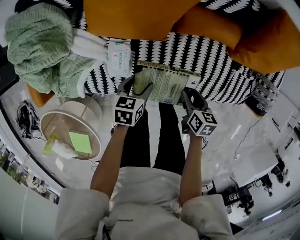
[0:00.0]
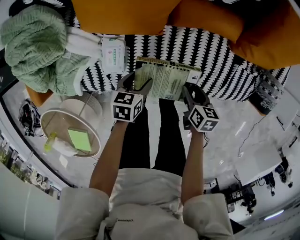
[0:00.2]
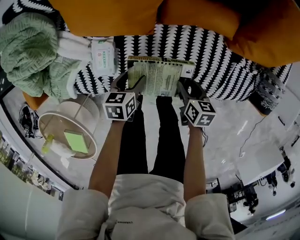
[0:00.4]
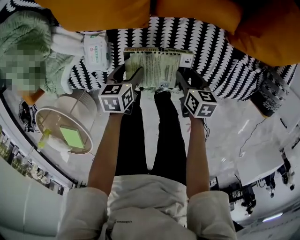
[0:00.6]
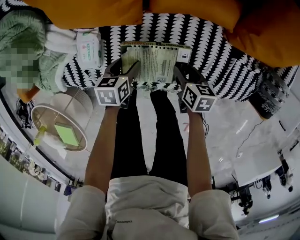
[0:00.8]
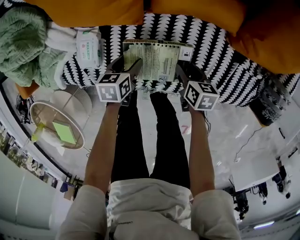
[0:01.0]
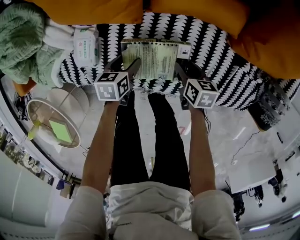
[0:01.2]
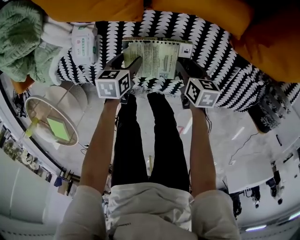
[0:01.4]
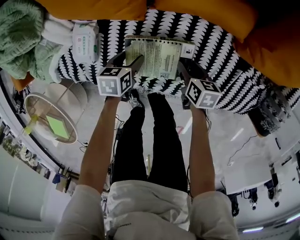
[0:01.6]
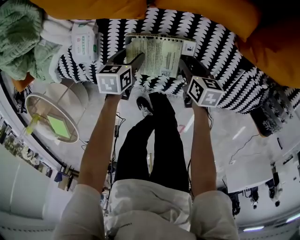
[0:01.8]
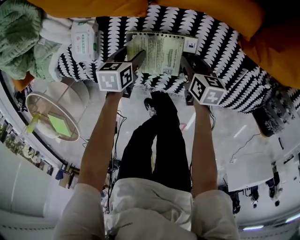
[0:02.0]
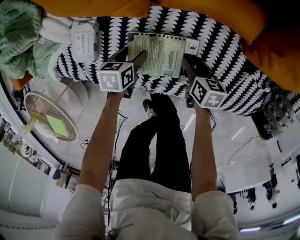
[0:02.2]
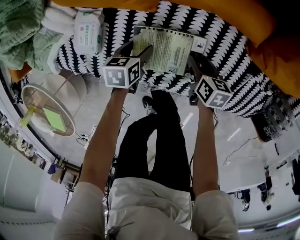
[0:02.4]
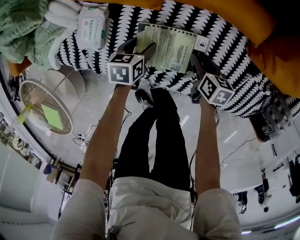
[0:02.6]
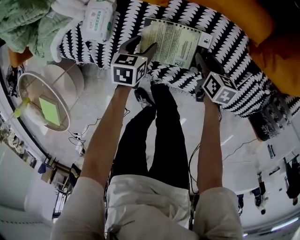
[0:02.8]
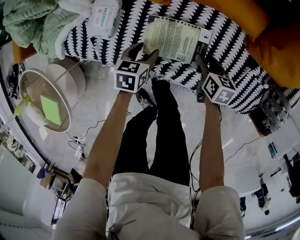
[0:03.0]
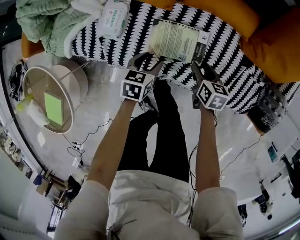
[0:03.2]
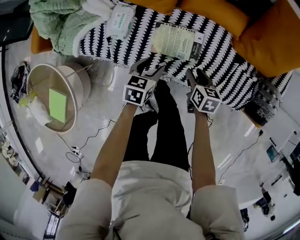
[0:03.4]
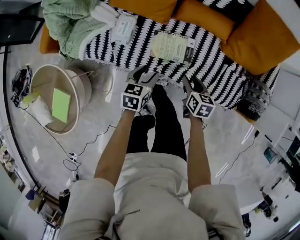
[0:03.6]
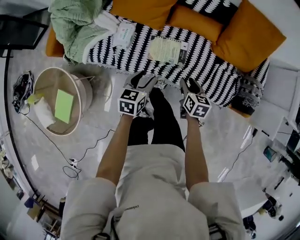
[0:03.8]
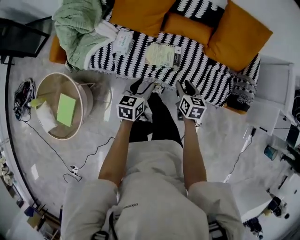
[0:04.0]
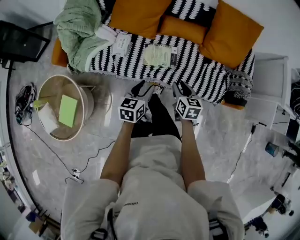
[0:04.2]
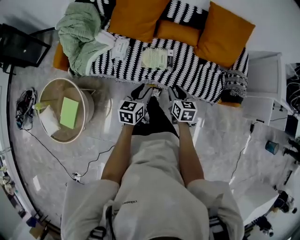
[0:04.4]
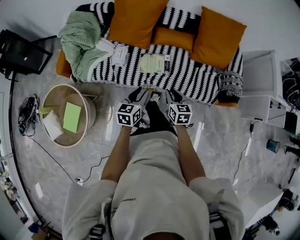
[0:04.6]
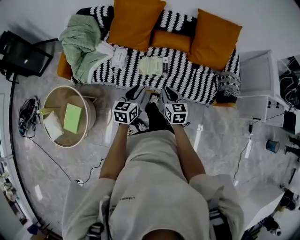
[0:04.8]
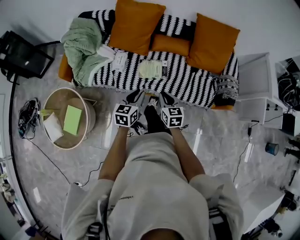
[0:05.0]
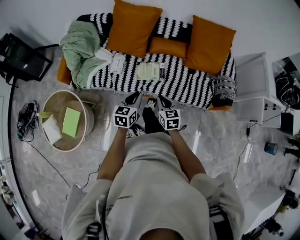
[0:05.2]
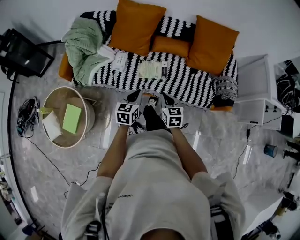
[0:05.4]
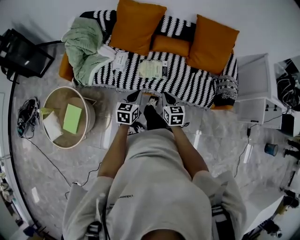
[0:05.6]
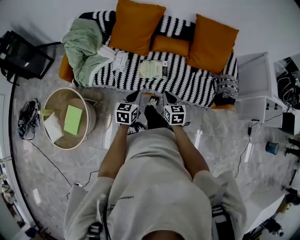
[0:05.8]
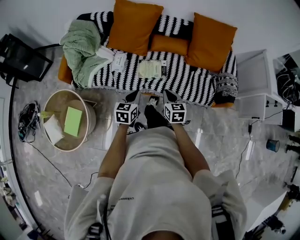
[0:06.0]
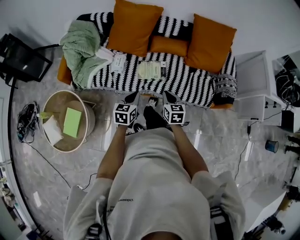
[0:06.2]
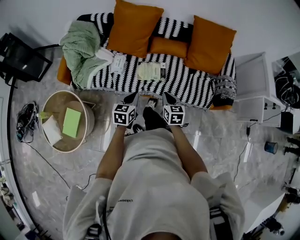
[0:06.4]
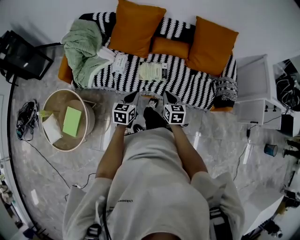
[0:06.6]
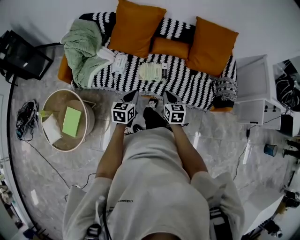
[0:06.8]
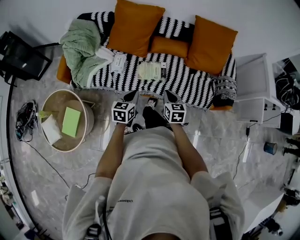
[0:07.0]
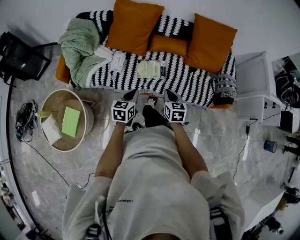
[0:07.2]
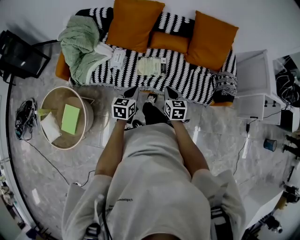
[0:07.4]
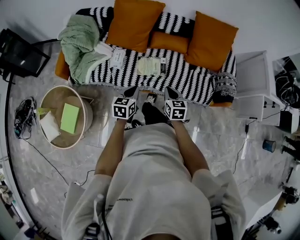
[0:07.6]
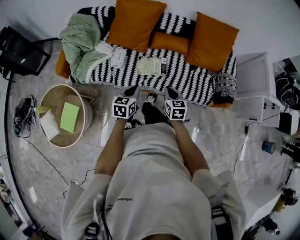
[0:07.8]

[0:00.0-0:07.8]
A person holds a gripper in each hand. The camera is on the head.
0:00.0 to 0:01.6: Both grippers travel together downward and to the right, roughly 20 cm.
0:01.6 to 0:03.2: The left gripper is displaced backward and upward by some 10 cm; the right gripper heads upward and backward, covering roughly 10 cm.
0:03.2 to 0:04.6: Both grippers travel together upward and backward, some 40 cm. The right gripper turns by about 20 degrees, and closes its fingers; the left gripper rotates some 20 degrees.
0:04.6 to 0:06.2: The left gripper closes its fingers.
0:06.2 to 0:07.8: The grippers move only a little.

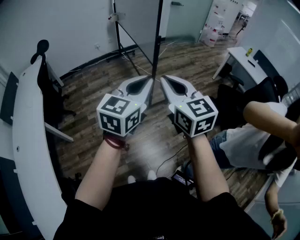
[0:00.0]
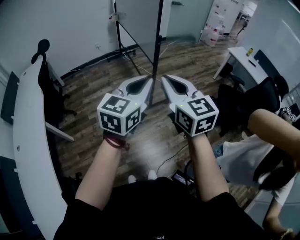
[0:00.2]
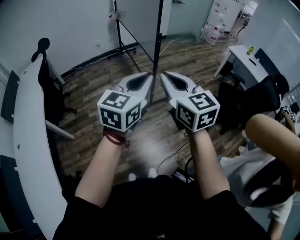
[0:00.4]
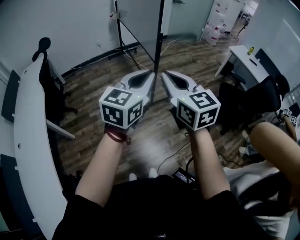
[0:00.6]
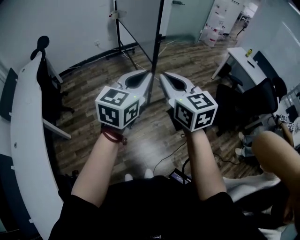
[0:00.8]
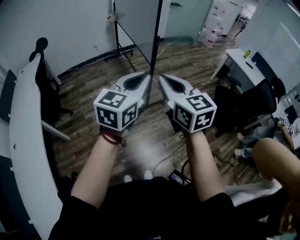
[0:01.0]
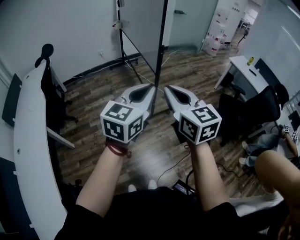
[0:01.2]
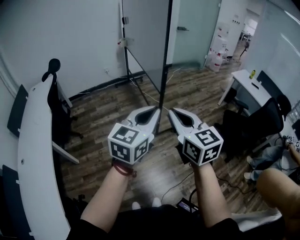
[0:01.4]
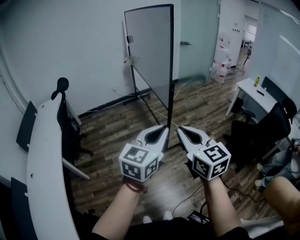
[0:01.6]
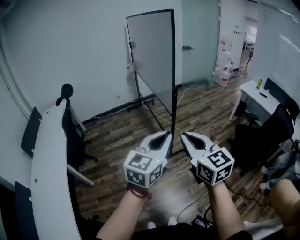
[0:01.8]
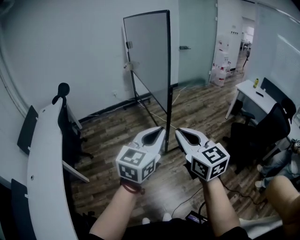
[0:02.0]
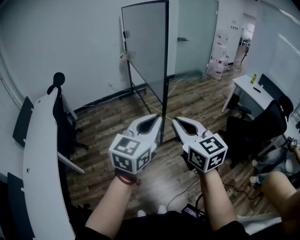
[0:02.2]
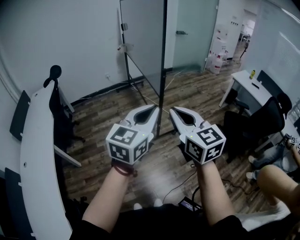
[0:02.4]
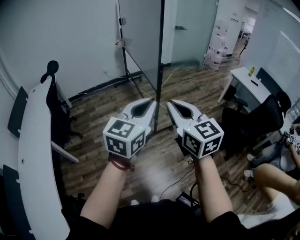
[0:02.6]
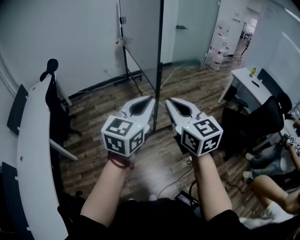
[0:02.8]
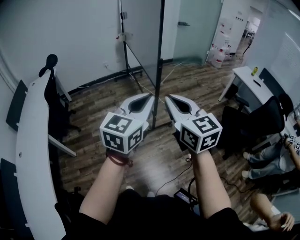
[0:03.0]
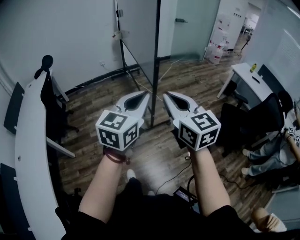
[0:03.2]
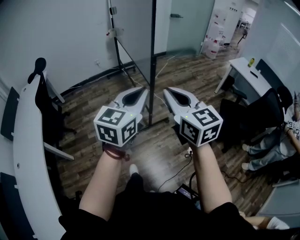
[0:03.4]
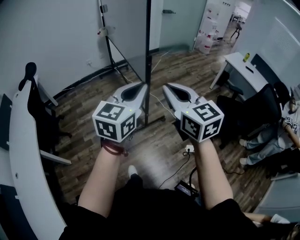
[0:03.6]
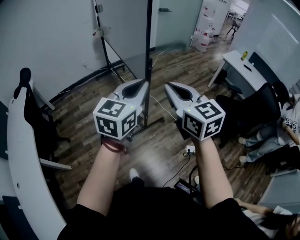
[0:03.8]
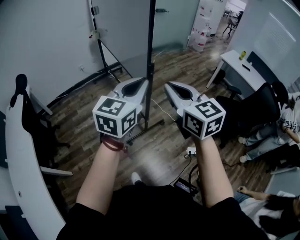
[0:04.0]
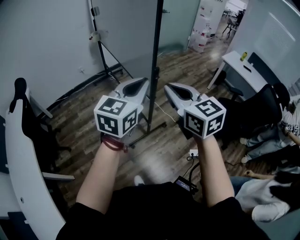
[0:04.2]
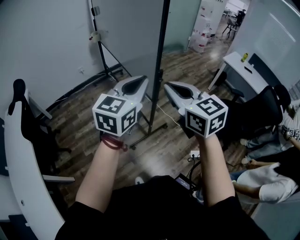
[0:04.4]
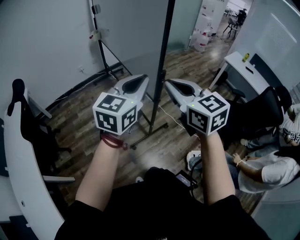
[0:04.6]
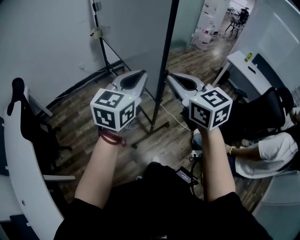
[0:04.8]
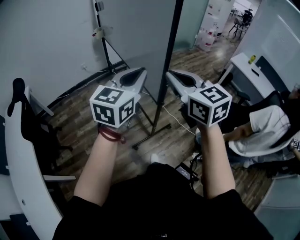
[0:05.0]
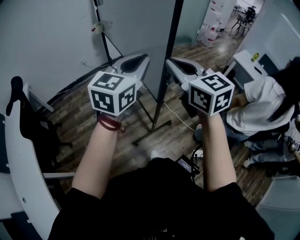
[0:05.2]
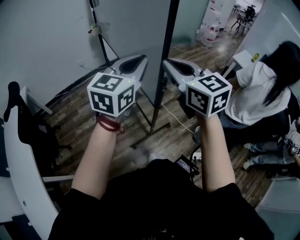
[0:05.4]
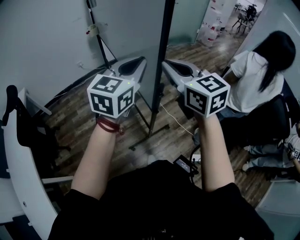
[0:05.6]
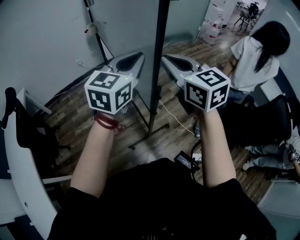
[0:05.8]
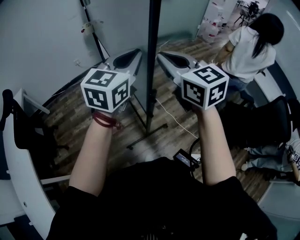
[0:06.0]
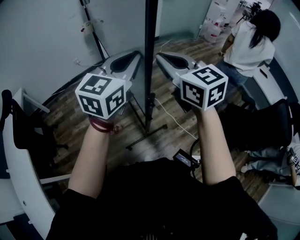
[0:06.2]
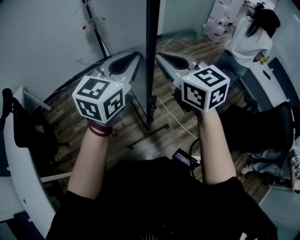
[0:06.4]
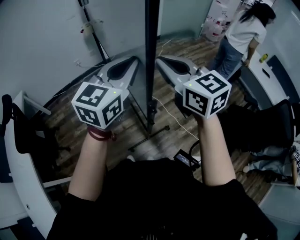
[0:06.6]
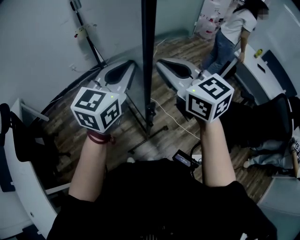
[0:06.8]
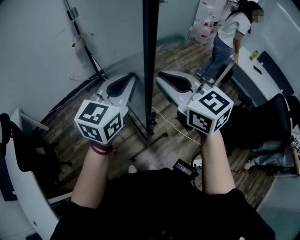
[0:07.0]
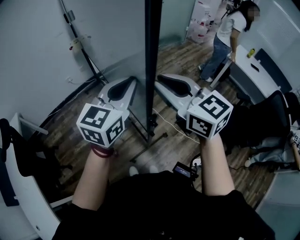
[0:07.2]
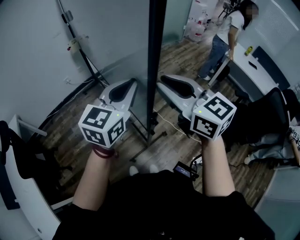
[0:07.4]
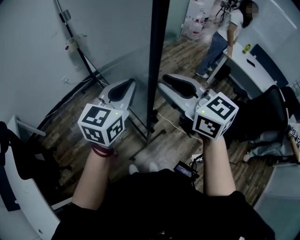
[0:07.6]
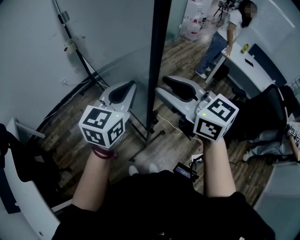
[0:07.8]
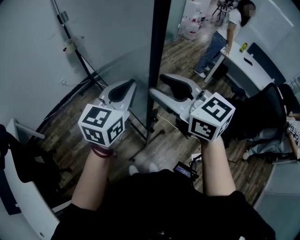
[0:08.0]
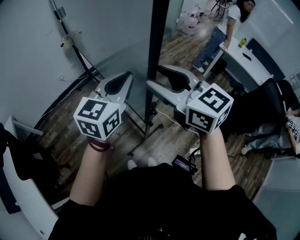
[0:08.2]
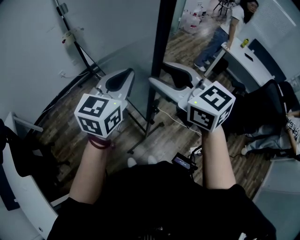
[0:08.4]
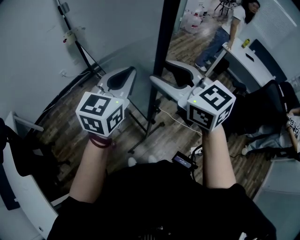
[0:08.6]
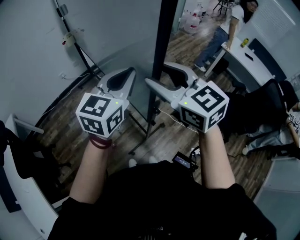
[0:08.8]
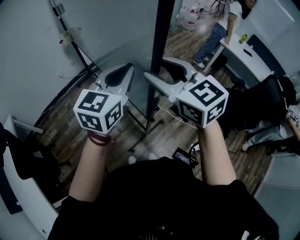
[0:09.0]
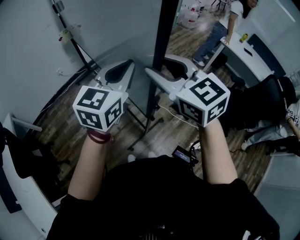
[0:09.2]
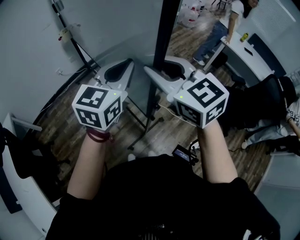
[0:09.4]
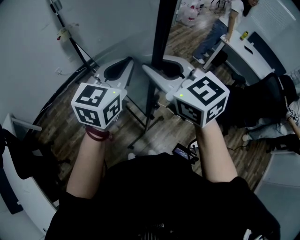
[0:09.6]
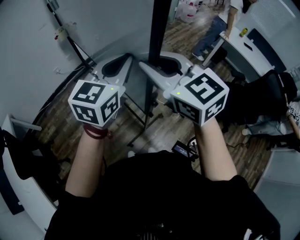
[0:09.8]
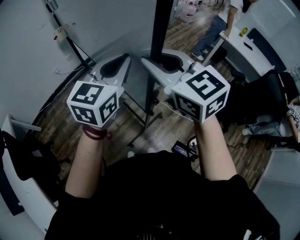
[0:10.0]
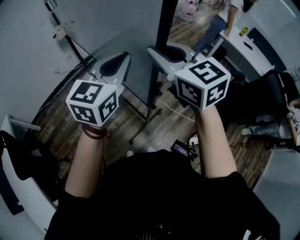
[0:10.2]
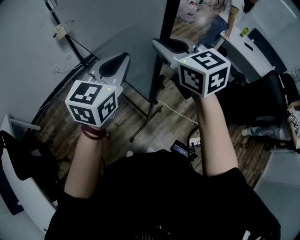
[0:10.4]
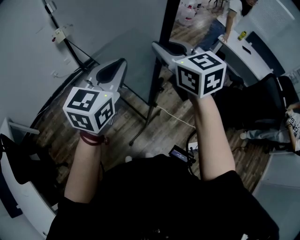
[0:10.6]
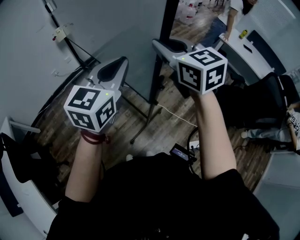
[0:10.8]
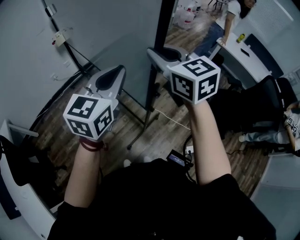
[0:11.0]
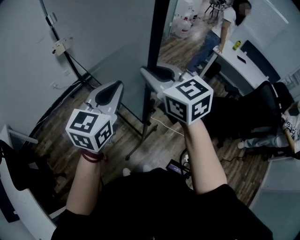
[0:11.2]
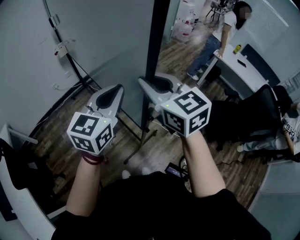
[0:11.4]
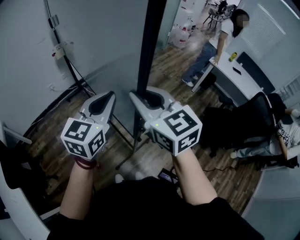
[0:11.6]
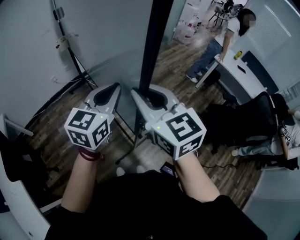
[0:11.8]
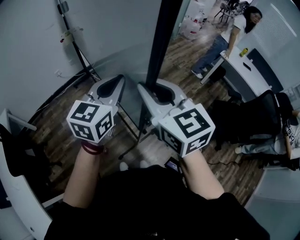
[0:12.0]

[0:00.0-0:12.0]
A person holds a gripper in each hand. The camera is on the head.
0:00.0 to 0:01.6: The grippers make only small movements.
0:01.6 to 0:03.0: The right gripper changes place by some 5 cm.
0:03.0 to 0:04.4: The grippers both shift forward by about 30 cm.
0:04.4 to 0:06.0: The grippers both shift forward by approximately 25 cm.
0:06.0 to 0:07.6: The right gripper opens.
0:07.6 to 0:09.0: The right gripper opens.
0:09.0 to 0:10.4: The right gripper is displaced forward by approximately 10 cm, and closes.
0:10.4 to 0:12.0: The right gripper heads backward, covering approximately 10 cm.

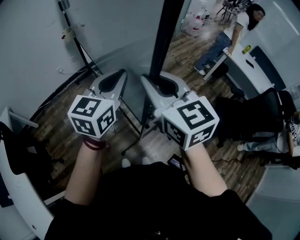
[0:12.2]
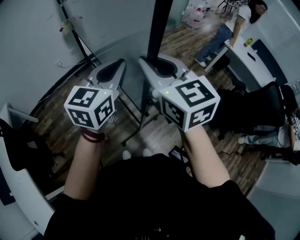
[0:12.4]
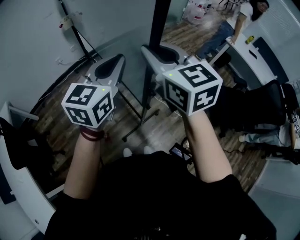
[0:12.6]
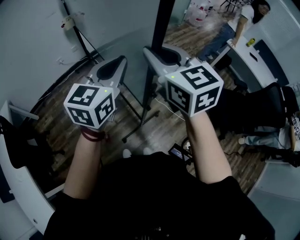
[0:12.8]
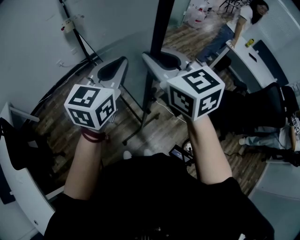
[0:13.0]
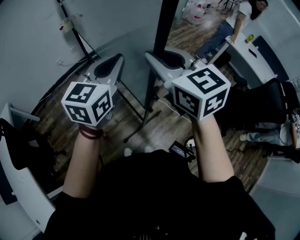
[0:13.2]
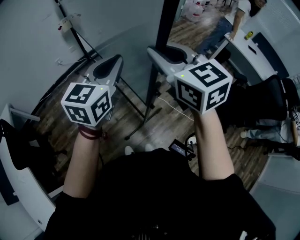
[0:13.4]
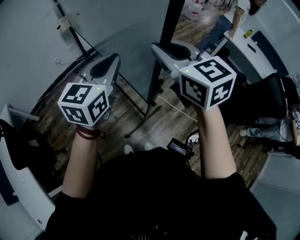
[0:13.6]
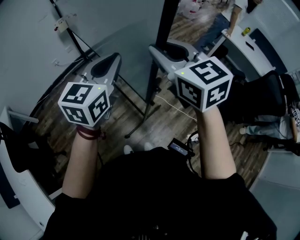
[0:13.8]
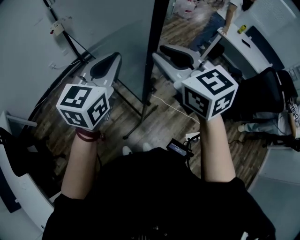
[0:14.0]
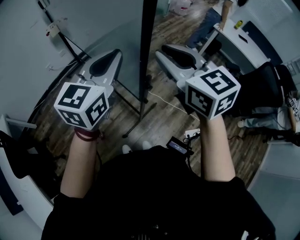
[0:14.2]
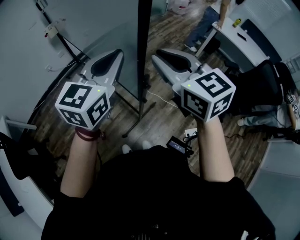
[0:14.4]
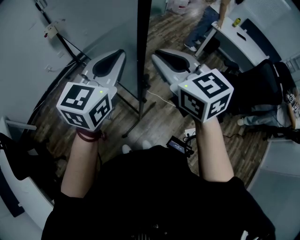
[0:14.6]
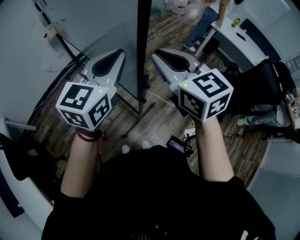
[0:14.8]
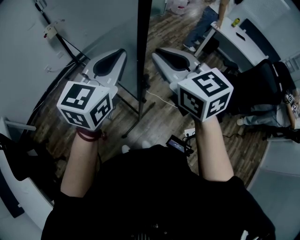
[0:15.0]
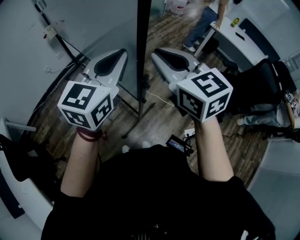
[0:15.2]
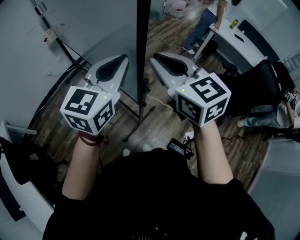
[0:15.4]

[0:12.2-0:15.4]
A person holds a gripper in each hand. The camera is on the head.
0:12.2 to 0:13.8: The grippers stay close to where they were, moving slightly.
0:13.8 to 0:15.4: The left gripper goes about 5 cm to the right, while the right gripper shifts by about 5 cm.

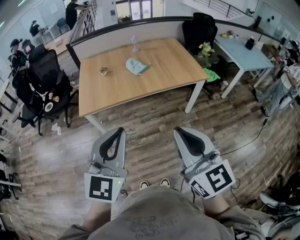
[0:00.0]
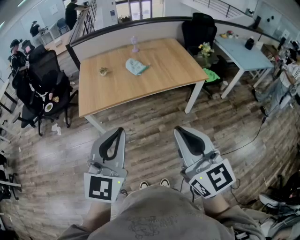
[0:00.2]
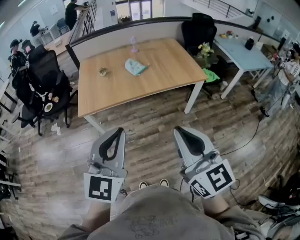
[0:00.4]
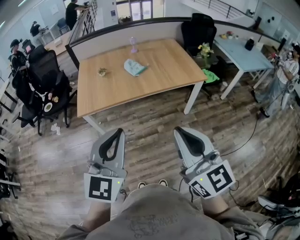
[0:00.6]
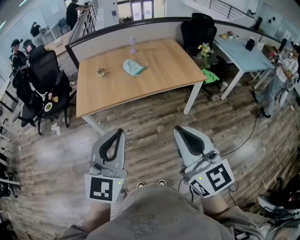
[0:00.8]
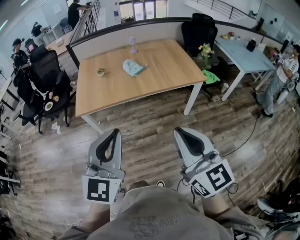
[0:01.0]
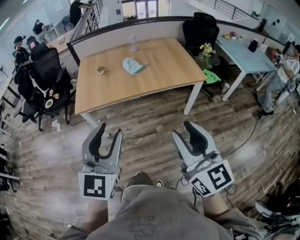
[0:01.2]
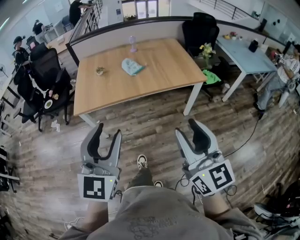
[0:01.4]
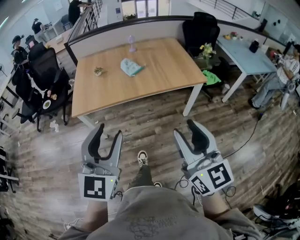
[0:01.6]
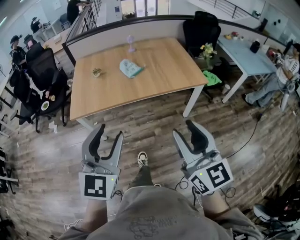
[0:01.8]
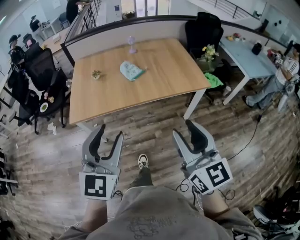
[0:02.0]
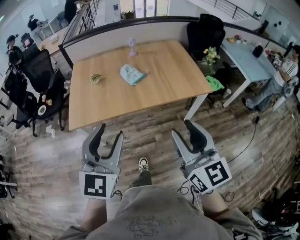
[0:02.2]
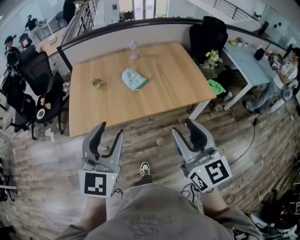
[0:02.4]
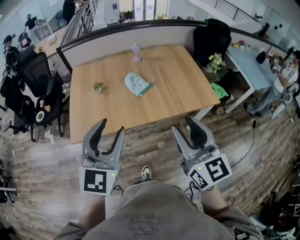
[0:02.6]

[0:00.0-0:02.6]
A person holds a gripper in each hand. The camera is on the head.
0:00.0 to 0:01.2: The left gripper moves about 5 cm, and opens its fingers. The right gripper shifts about 10 cm to the right, and opens.
0:01.2 to 0:02.6: The two grippers go about 30 cm forward.
